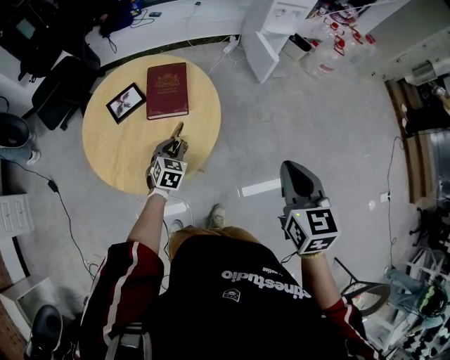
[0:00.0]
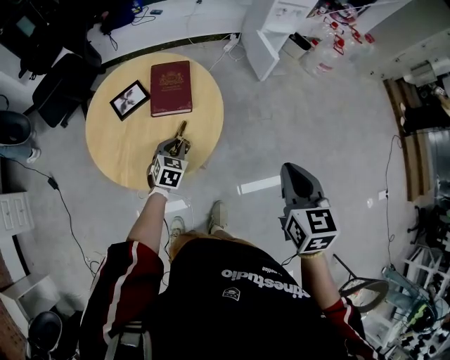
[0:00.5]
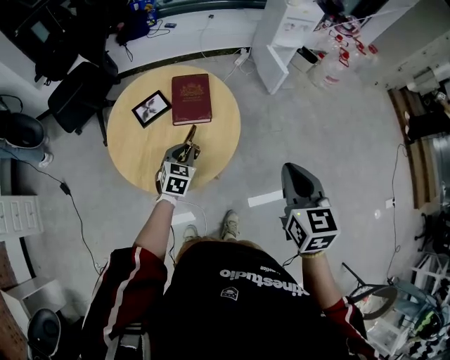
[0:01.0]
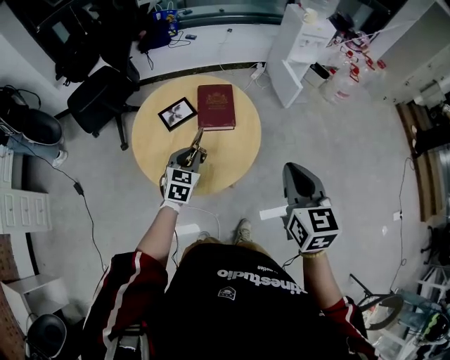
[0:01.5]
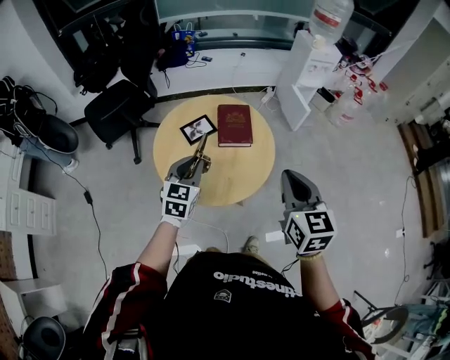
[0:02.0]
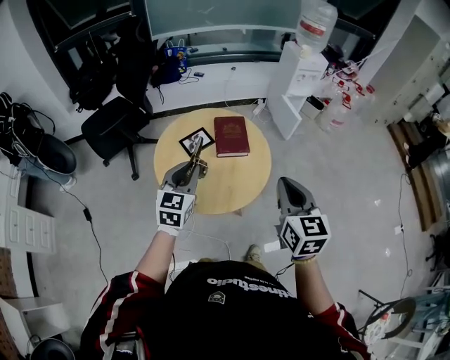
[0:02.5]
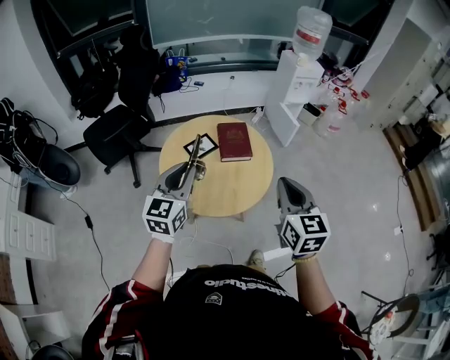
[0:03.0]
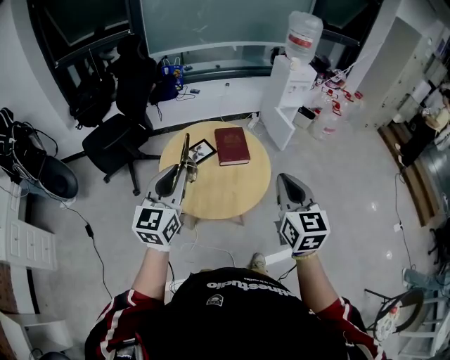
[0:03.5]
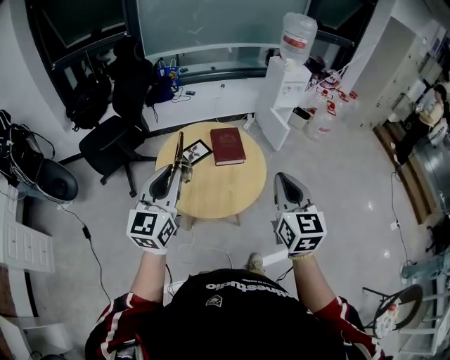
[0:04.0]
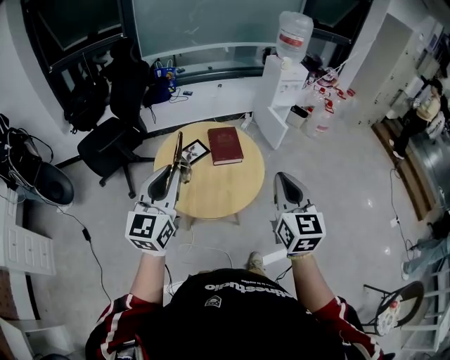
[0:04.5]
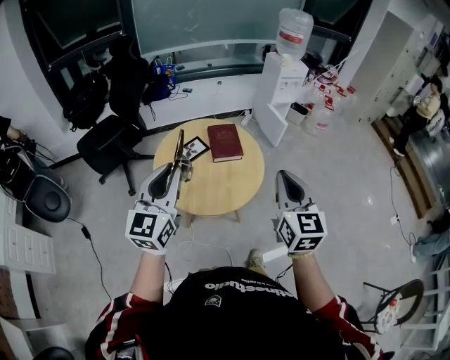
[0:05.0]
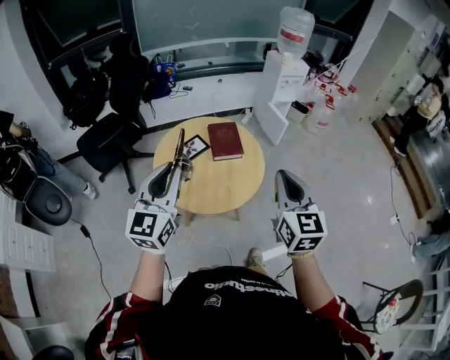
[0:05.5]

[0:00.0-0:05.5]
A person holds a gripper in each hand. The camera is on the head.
0:00.0 to 0:02.0: The right gripper heads to the left and upward, covering roughly 25 cm; the left gripper heads upward and to the left, covering roughly 30 cm, and rotates roughly 20 degrees.
0:02.0 to 0:03.5: The left gripper heads upward, backward and to the left, covering approximately 20 cm, and turns by some 20 degrees. Meanwhile the right gripper heads backward, covering roughly 5 cm.
0:03.5 to 0:05.5: The grippers stay close to where they were, moving slightly.

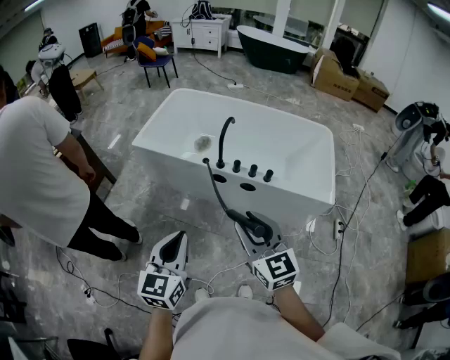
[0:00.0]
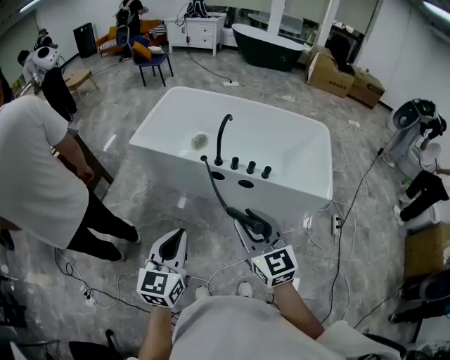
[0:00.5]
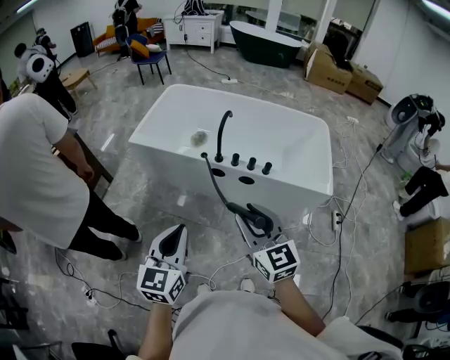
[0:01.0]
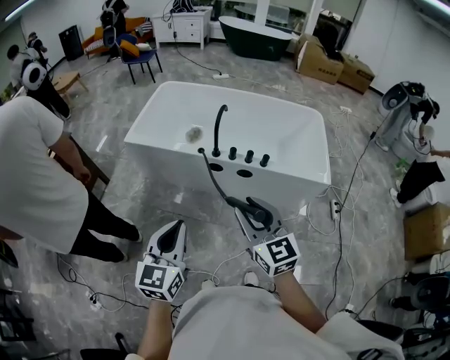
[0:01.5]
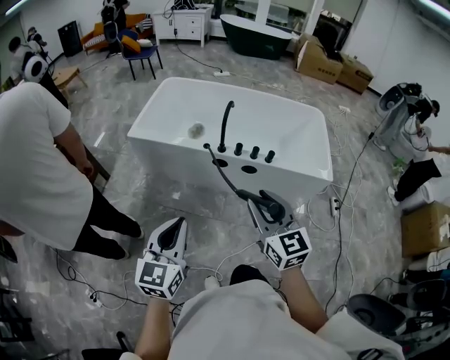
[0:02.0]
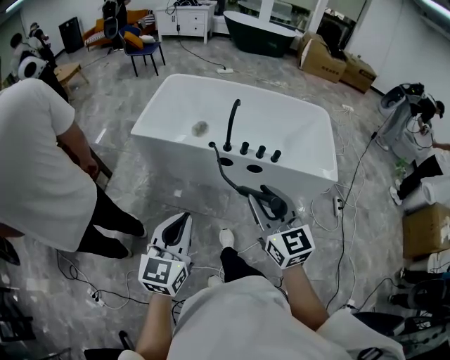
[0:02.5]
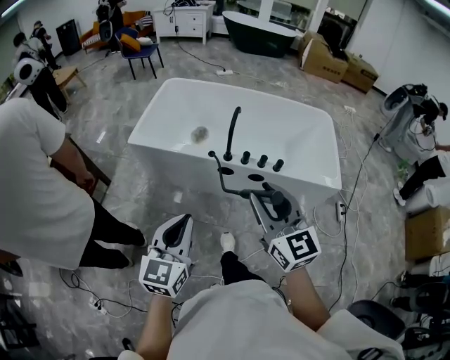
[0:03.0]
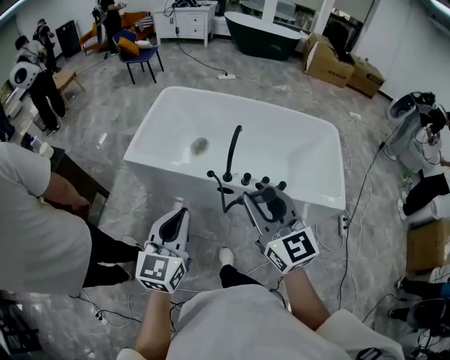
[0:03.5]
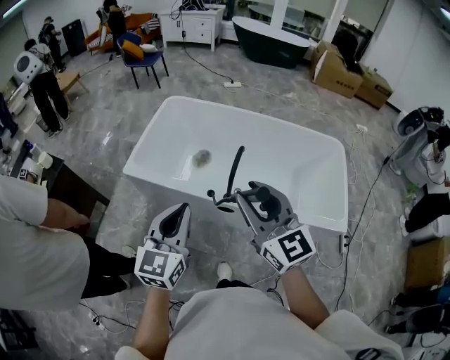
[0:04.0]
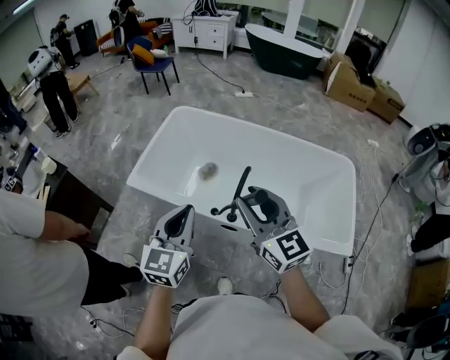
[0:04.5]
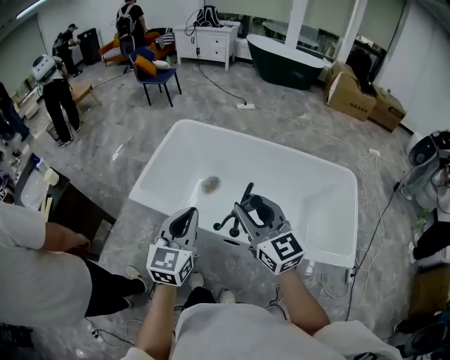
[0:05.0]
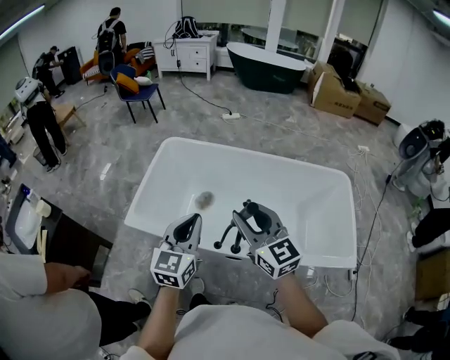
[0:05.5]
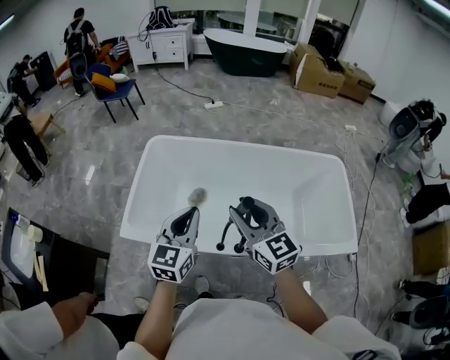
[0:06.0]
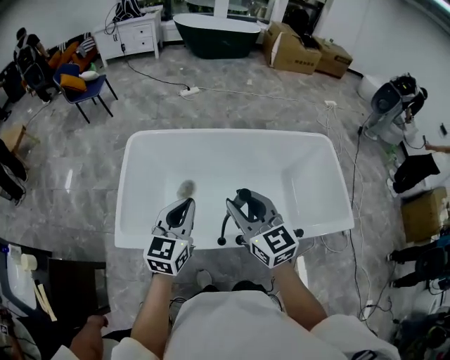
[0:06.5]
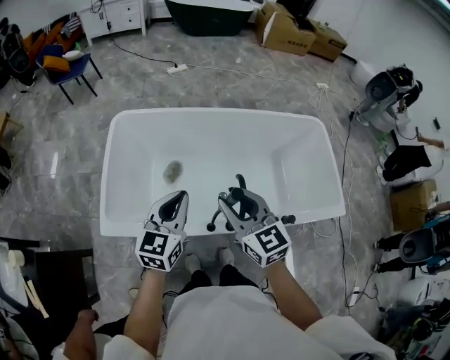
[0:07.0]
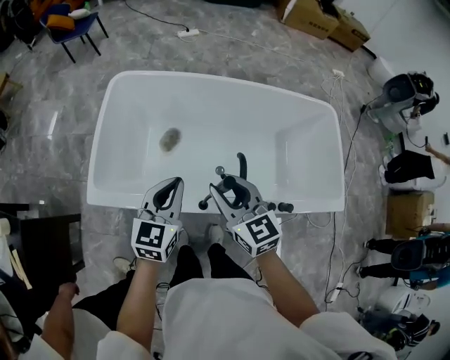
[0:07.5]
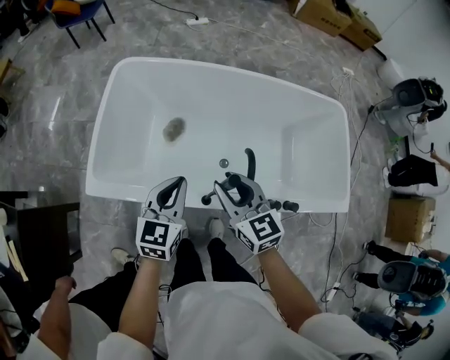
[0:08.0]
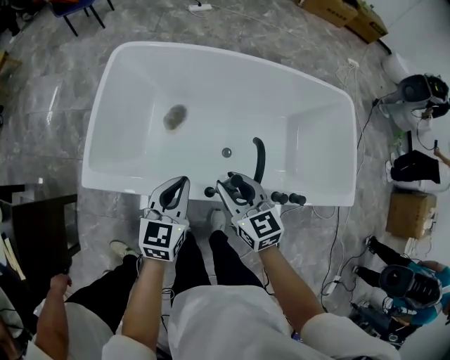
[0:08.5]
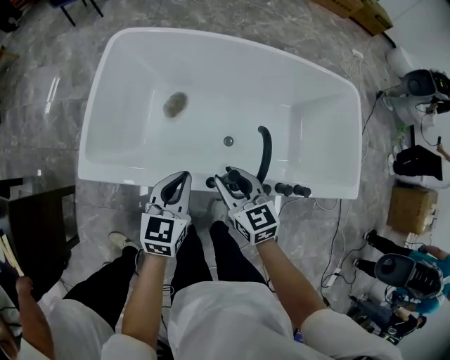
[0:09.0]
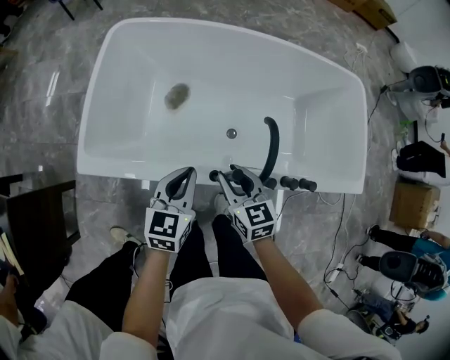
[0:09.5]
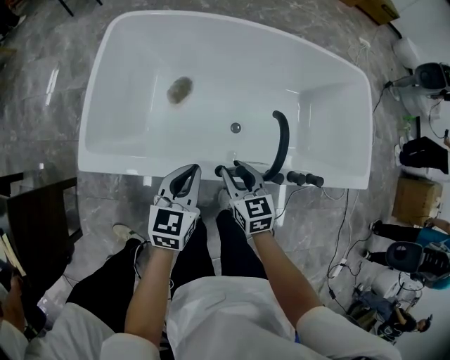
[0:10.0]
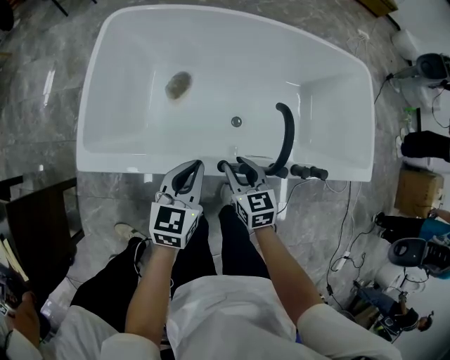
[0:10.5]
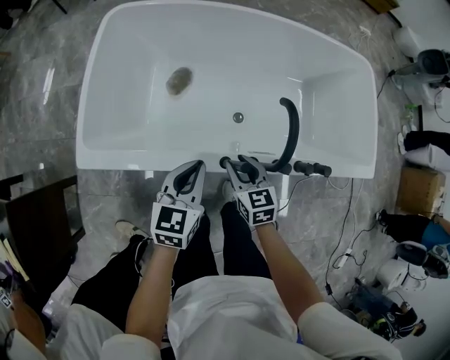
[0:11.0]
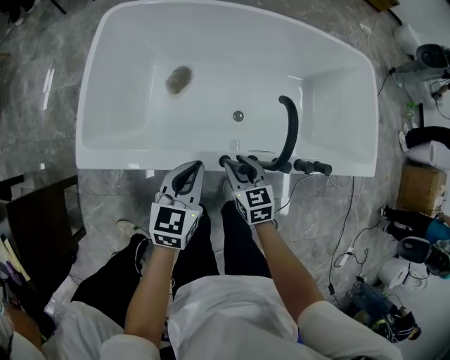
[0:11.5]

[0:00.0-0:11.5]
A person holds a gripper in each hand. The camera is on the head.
0:00.0 to 0:02.0: The left gripper moves to the left, roughly 10 cm.
0:02.0 to 0:04.0: Both grippers move forward, roughly 30 cm.
0:04.0 to 0:06.0: Both grippers travel together forward, some 25 cm.
0:06.0 to 0:07.5: Both grippers travel together downward, roughly 15 cm.
0:07.5 to 0:09.5: The grippers both shift downward by about 20 cm.
0:09.5 to 0:11.5: The right gripper shifts some 10 cm downward.

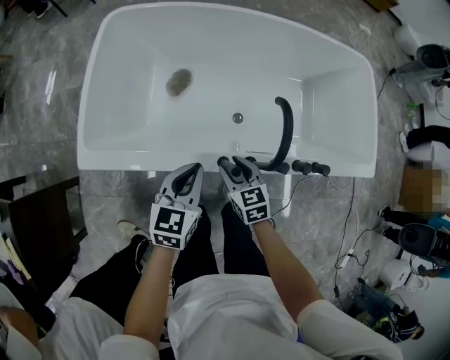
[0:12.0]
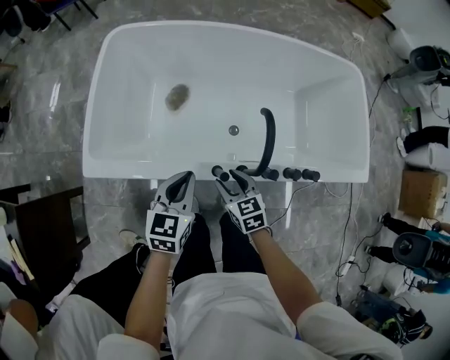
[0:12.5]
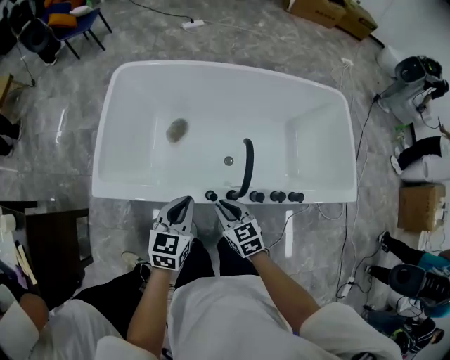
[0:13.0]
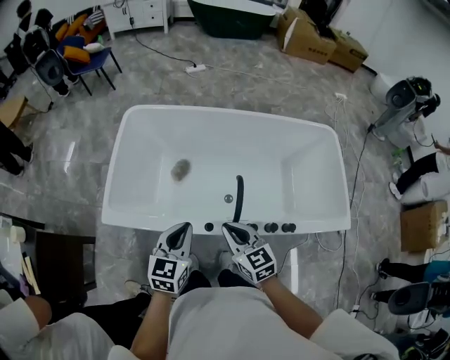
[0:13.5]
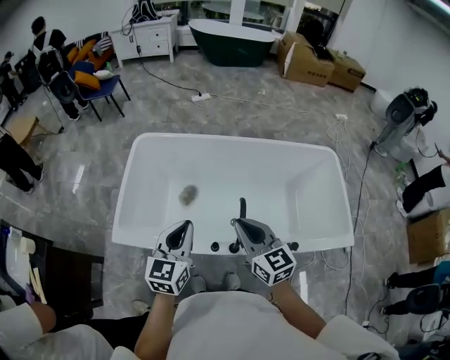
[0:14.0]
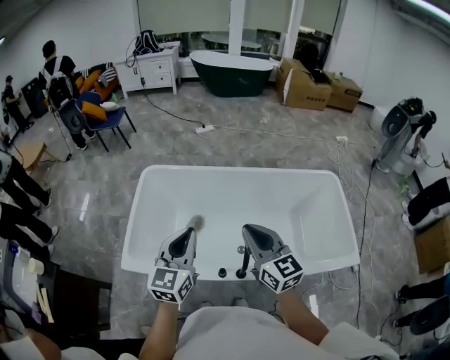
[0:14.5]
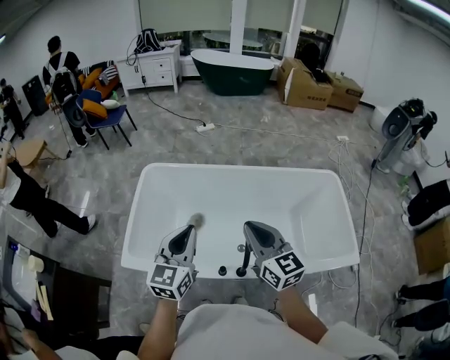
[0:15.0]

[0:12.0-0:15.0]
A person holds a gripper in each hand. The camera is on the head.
0:12.0 to 0:13.5: Both grippers travel together upward, roughly 20 cm. The right gripper closes.
0:13.5 to 0:15.0: Both grippers move upward and forward, approximately 20 cm. The right gripper turns by about 20 degrees.

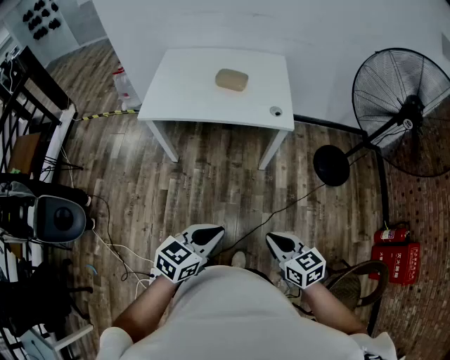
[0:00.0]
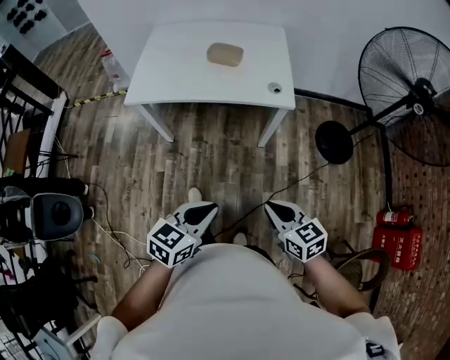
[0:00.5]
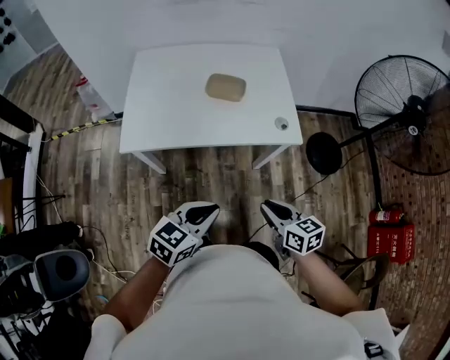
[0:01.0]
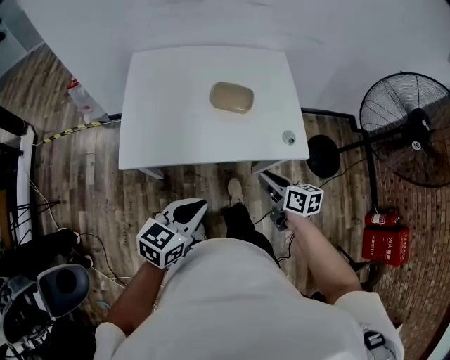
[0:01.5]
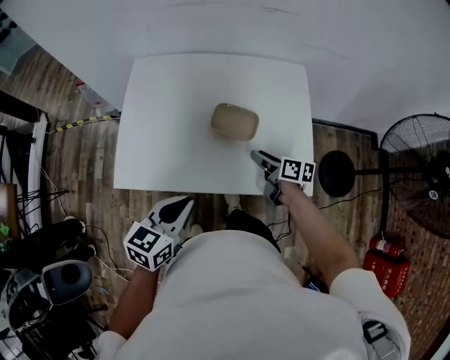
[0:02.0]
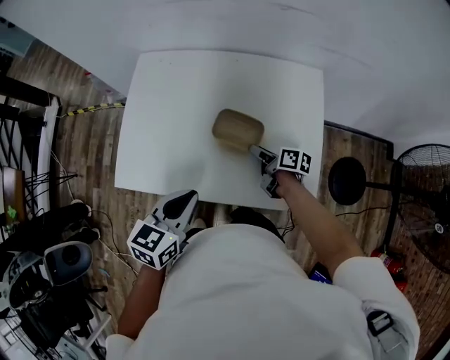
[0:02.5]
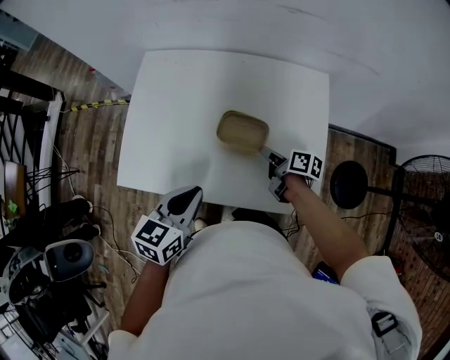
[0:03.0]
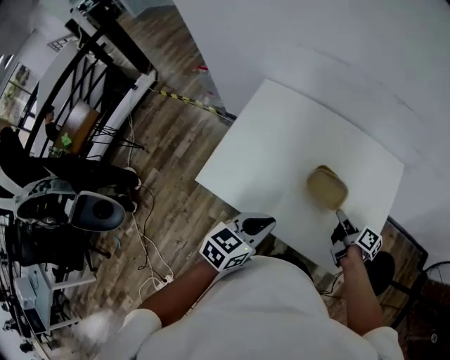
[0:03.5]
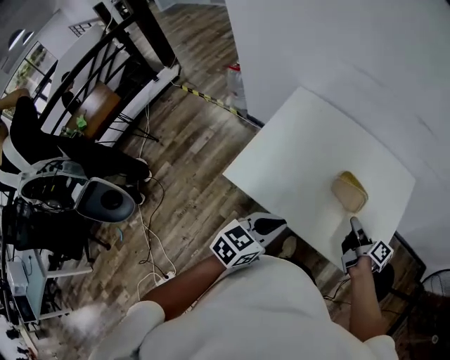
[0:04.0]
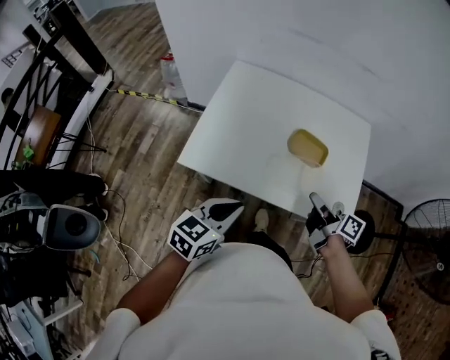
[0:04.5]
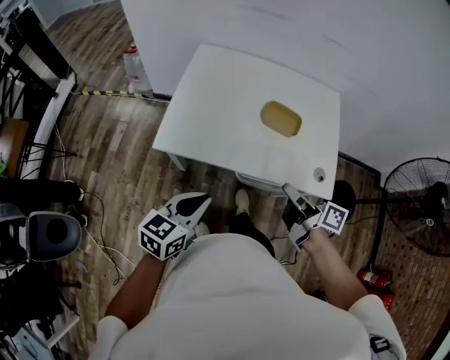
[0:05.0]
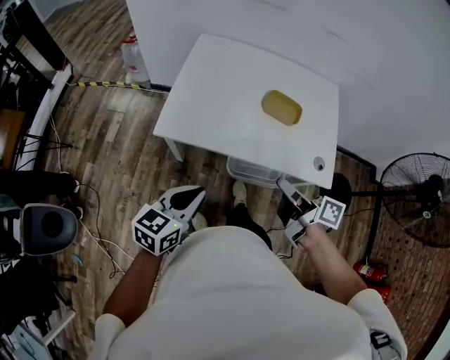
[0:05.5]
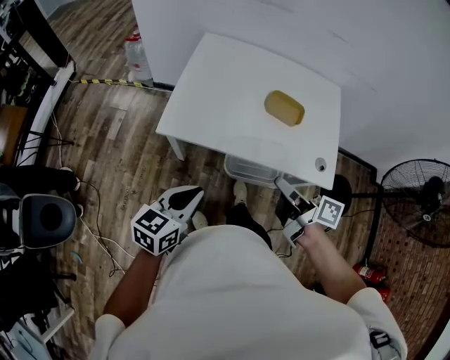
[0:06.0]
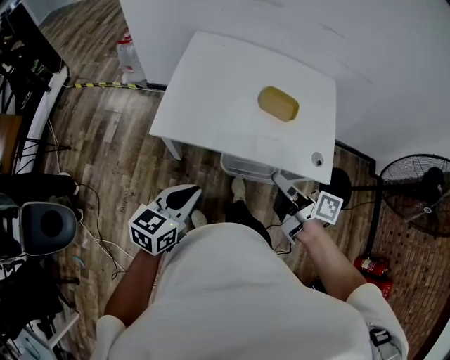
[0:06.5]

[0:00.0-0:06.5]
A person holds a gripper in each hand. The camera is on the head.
0:00.0 to 0:02.0: The pair of grippers is taken forward, roughly 60 cm. The right gripper swivels about 40 degrees, and opens.
0:02.0 to 0:04.5: The right gripper is displaced upward, backward and to the left by approximately 15 cm, and closes its fingers. The left gripper travels to the left by roughly 10 cm.
0:04.5 to 0:06.5: The right gripper is displaced backward and to the left by some 15 cm. Meanwhile the left gripper goes approximately 10 cm backward.
